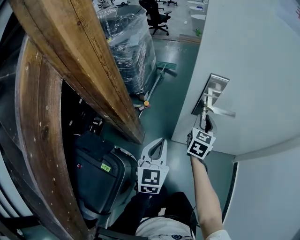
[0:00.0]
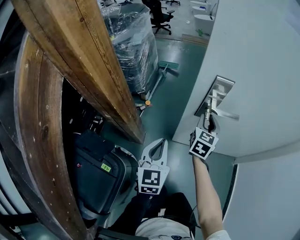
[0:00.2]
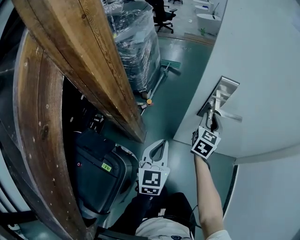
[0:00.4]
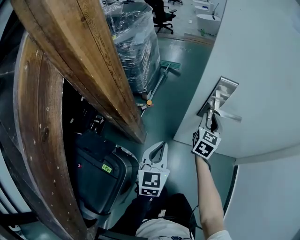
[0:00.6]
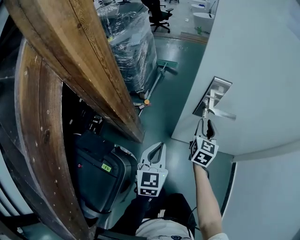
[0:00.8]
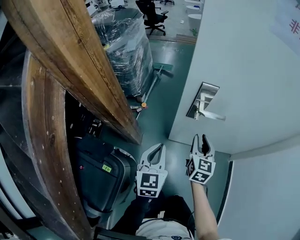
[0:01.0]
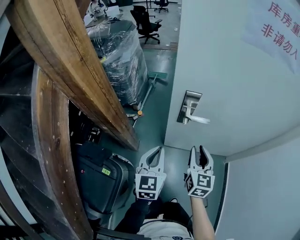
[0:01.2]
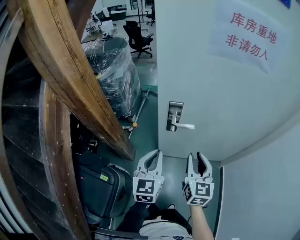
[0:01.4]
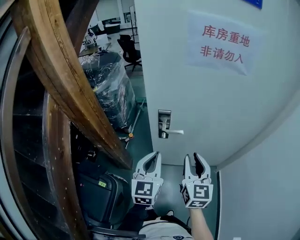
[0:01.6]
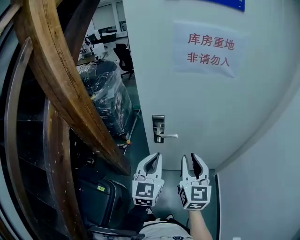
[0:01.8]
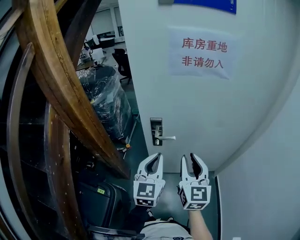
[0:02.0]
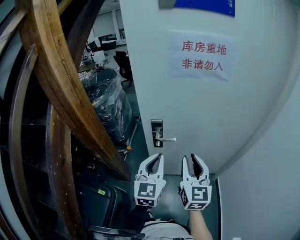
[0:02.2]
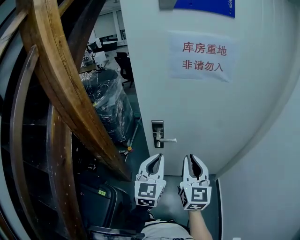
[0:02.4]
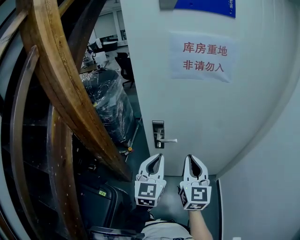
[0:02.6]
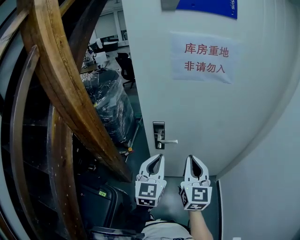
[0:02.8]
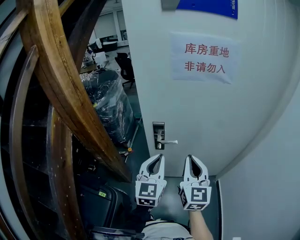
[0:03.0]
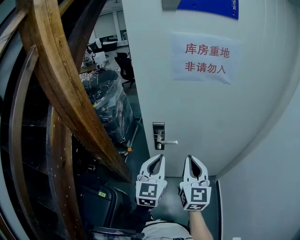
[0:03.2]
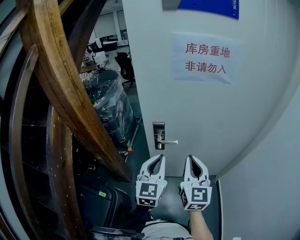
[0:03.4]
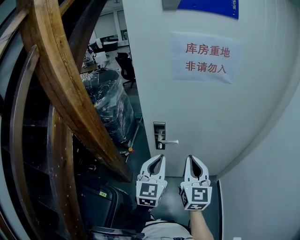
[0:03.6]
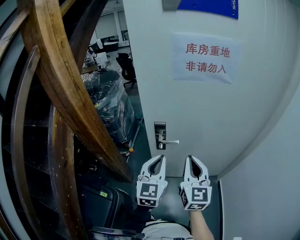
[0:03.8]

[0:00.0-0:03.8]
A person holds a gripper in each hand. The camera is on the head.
0:00.0 to 0:01.2: The left gripper is displaced upward by approximately 10 cm; the right gripper travels backward and upward by about 15 cm.
0:01.2 to 0:02.6: The two grippers go roughly 25 cm upward and to the right. The right gripper closes.
0:02.6 to 0:03.8: The two grippers keep their place.

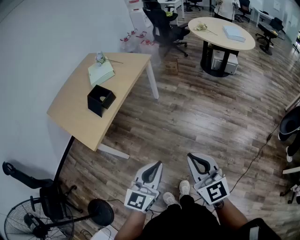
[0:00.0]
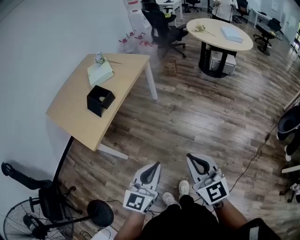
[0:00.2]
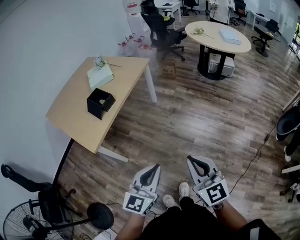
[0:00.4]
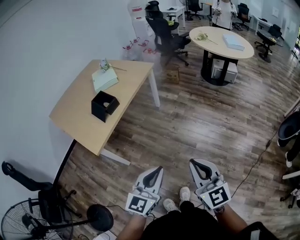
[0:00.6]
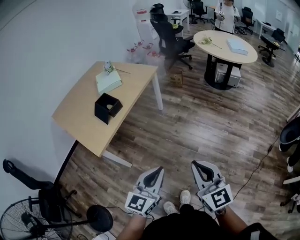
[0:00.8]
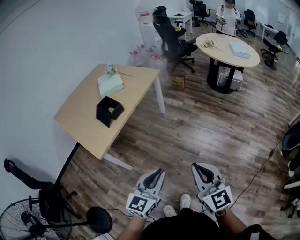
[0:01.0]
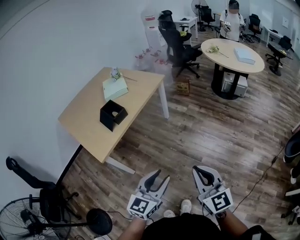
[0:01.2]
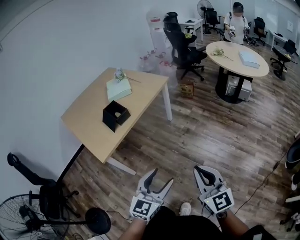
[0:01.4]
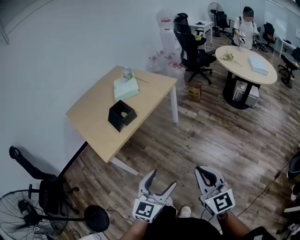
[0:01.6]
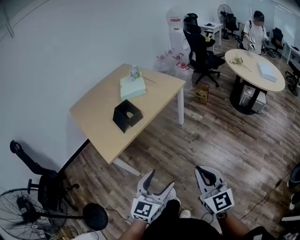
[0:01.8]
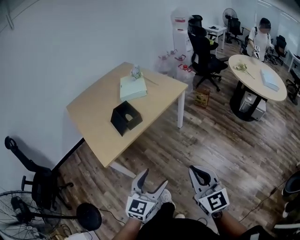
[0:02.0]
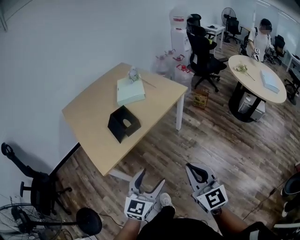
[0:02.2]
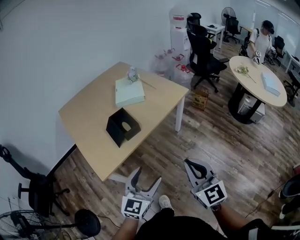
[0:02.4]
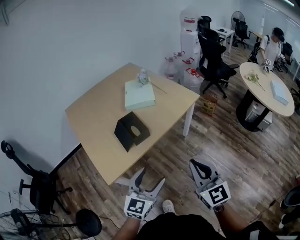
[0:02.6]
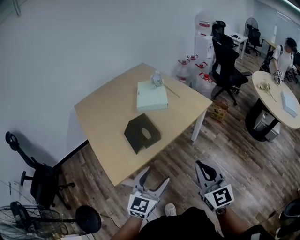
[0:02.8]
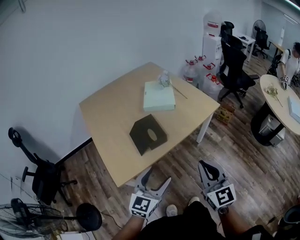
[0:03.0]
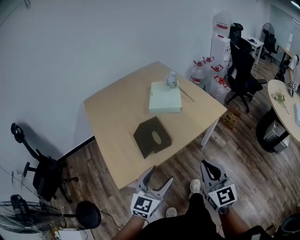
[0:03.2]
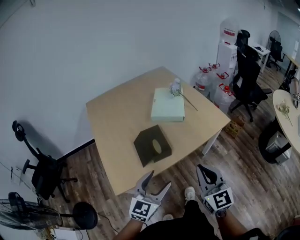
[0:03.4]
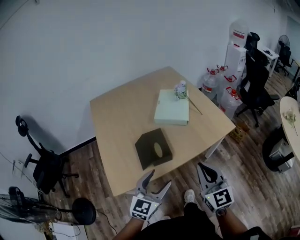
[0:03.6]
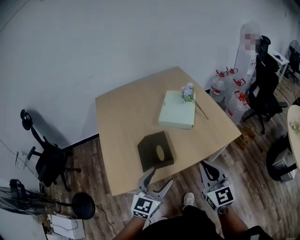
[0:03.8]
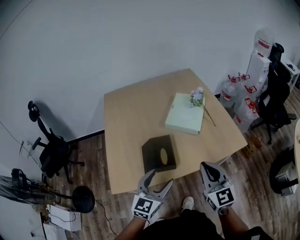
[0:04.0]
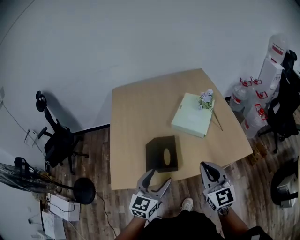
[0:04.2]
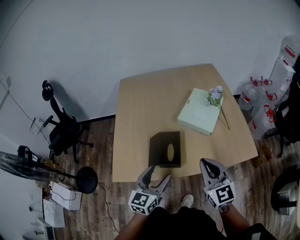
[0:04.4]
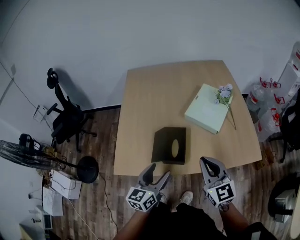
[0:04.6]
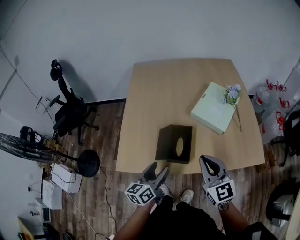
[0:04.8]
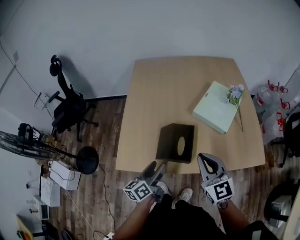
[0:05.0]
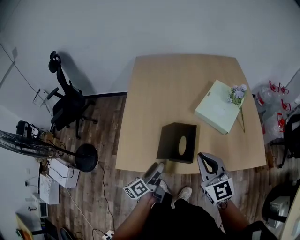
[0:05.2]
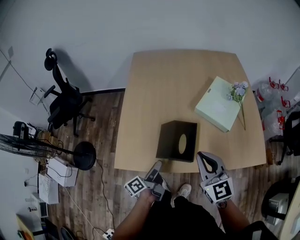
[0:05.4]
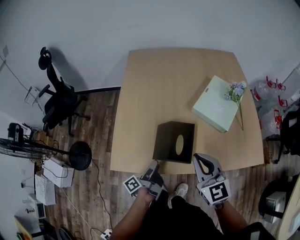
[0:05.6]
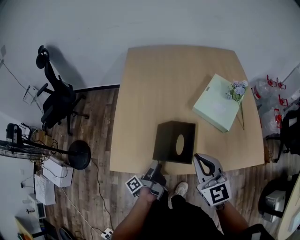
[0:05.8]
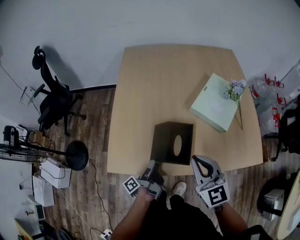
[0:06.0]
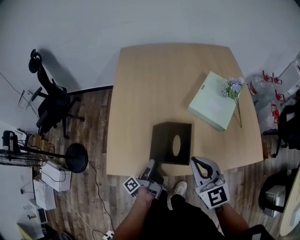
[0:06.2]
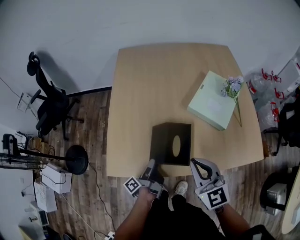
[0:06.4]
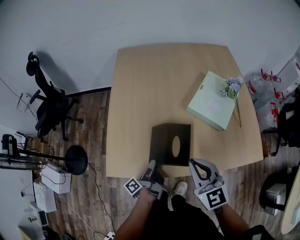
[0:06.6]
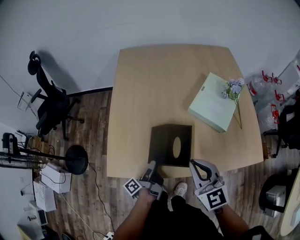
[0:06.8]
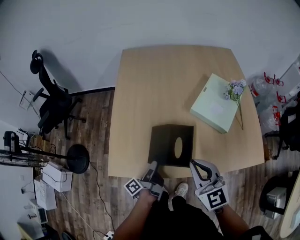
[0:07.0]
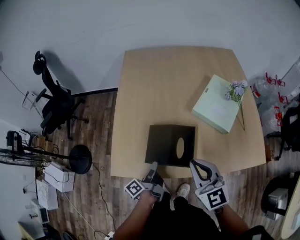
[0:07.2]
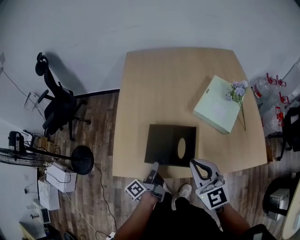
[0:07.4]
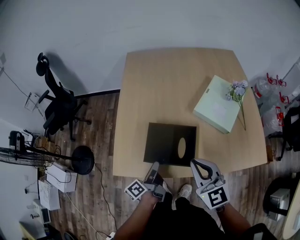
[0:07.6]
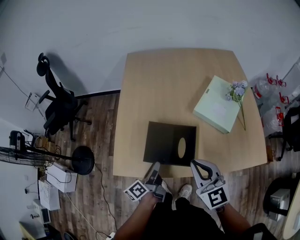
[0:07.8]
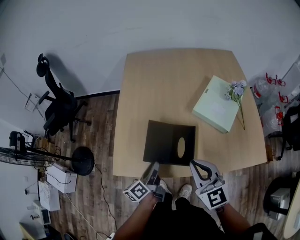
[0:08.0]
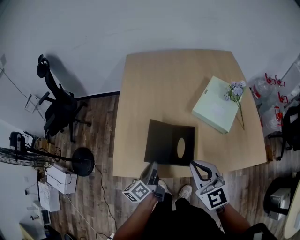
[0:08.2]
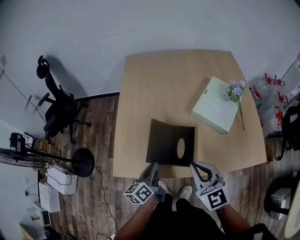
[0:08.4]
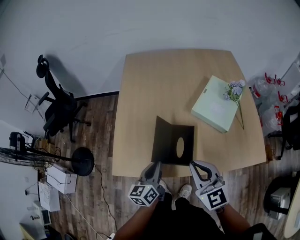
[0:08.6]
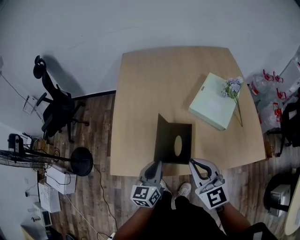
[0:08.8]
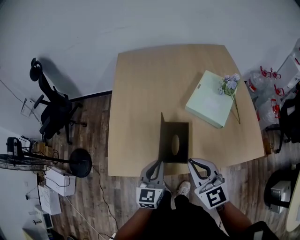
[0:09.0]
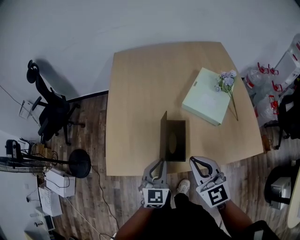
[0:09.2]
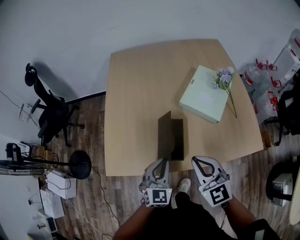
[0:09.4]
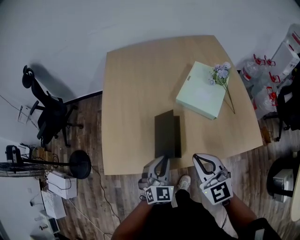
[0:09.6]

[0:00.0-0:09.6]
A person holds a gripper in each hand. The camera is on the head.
0:00.0 to 0:01.6: The right gripper is displaced forward by about 5 cm, while the left gripper changes place by roughly 5 cm, and opens up.
0:01.6 to 0:03.2: The left gripper travels forward and to the left by some 35 cm. Meanwhile the right gripper travels forward by approximately 35 cm.
0:03.2 to 0:04.8: The right gripper moves roughly 25 cm, and rotates some 40 degrees, while the left gripper moves some 15 cm, and rotates some 60 degrees.
0:04.8 to 0:06.4: The right gripper travels to the left by some 5 cm, while the left gripper moves downward and forward, roughly 15 cm, and rolls counterclockwise, seen from behind, by approximately 70 degrees.
0:06.4 to 0:08.0: The left gripper shifts approximately 5 cm upward, turns by roughly 40 degrees, and closes up.
0:08.0 to 0:09.6: The right gripper shifts about 5 cm to the right, while the left gripper is displaced to the right by approximately 10 cm, and twists some 90 degrees clockwise, seen from behind.

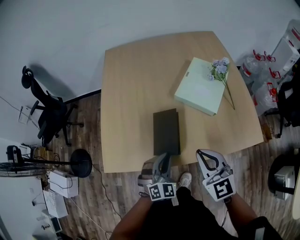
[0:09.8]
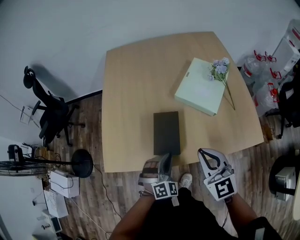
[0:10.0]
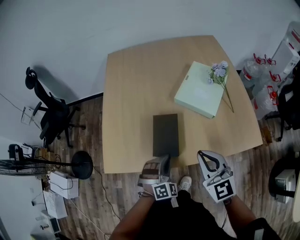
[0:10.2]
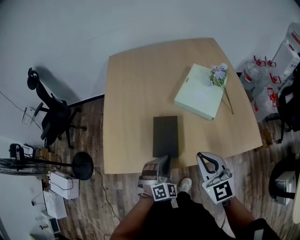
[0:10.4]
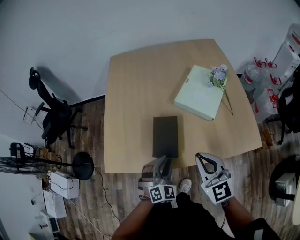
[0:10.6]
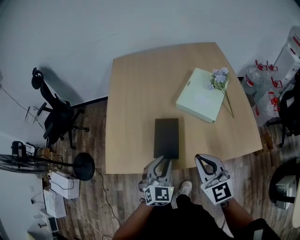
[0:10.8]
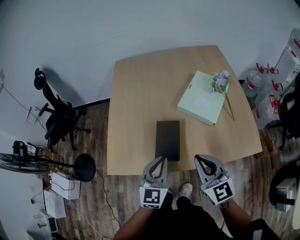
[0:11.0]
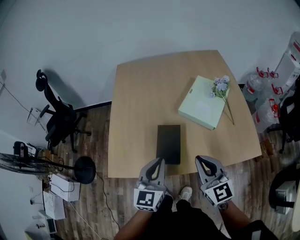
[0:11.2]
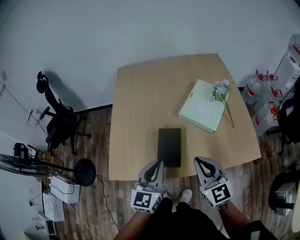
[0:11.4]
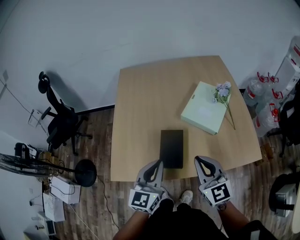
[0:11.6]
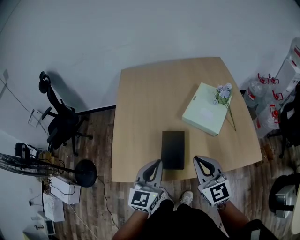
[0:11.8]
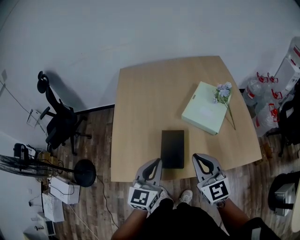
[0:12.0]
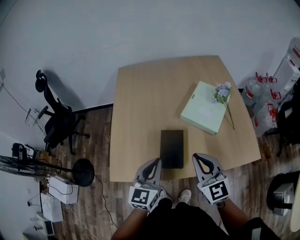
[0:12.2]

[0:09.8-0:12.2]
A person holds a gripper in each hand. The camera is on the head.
0:09.8 to 0:11.0: The left gripper travels upward by some 10 cm, and changes its angle by about 40 degrees.
0:11.0 to 0:12.2: The left gripper moves about 5 cm. The right gripper changes place by approximately 5 cm.

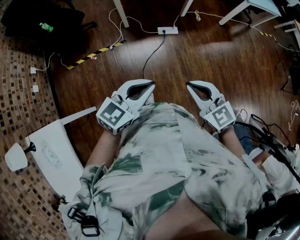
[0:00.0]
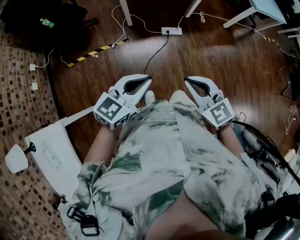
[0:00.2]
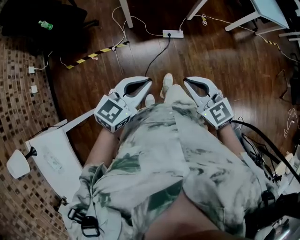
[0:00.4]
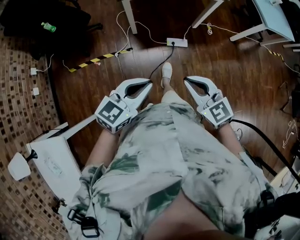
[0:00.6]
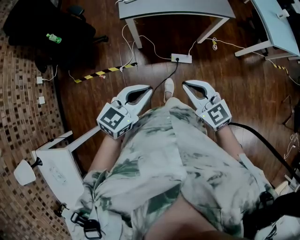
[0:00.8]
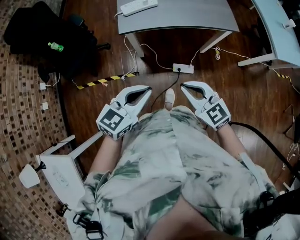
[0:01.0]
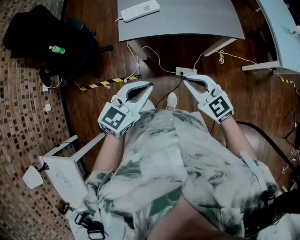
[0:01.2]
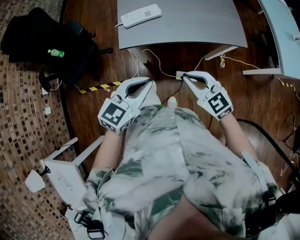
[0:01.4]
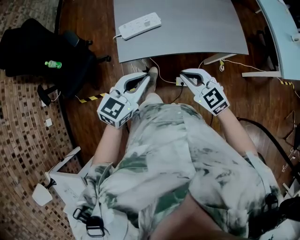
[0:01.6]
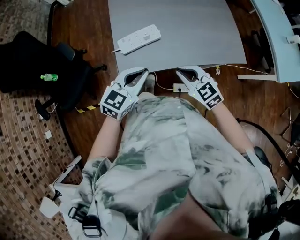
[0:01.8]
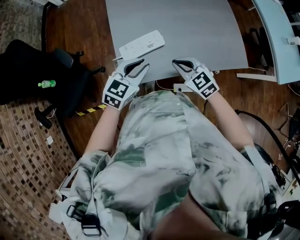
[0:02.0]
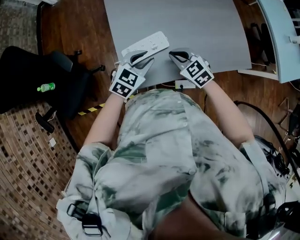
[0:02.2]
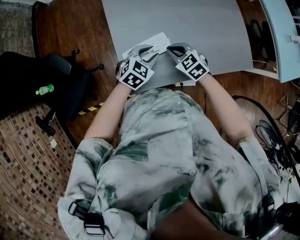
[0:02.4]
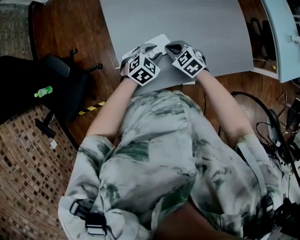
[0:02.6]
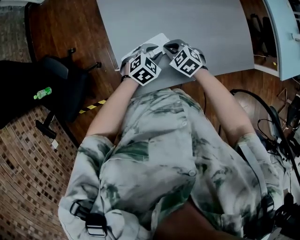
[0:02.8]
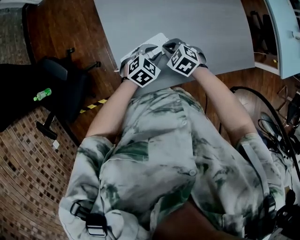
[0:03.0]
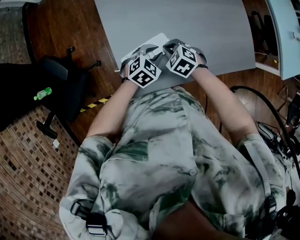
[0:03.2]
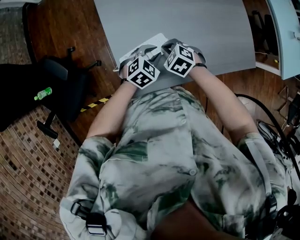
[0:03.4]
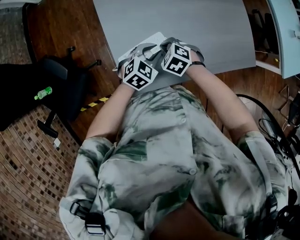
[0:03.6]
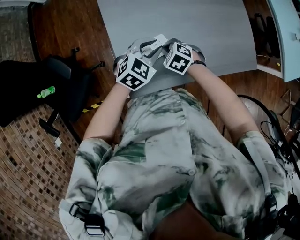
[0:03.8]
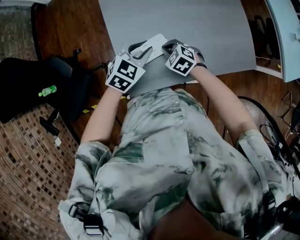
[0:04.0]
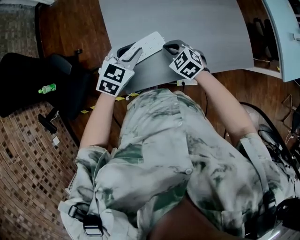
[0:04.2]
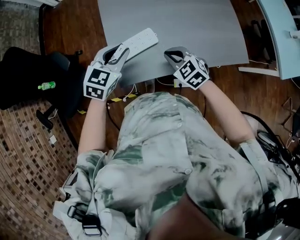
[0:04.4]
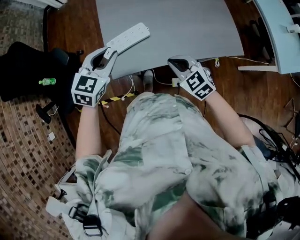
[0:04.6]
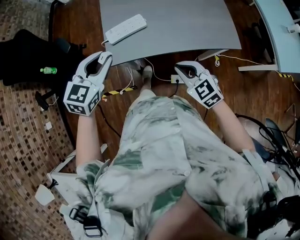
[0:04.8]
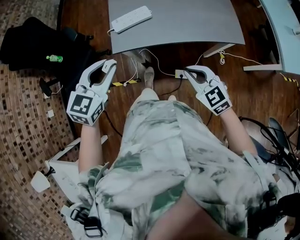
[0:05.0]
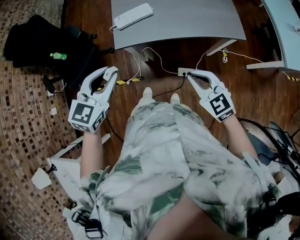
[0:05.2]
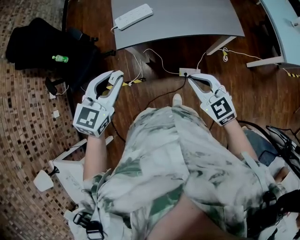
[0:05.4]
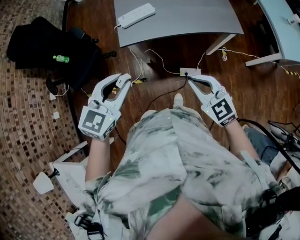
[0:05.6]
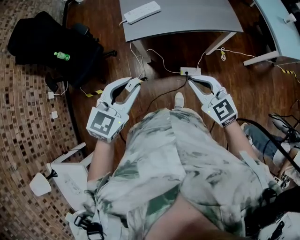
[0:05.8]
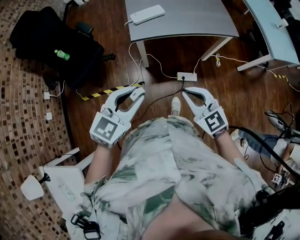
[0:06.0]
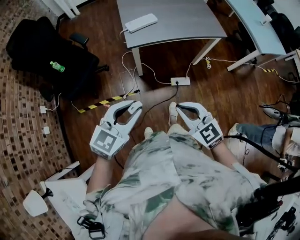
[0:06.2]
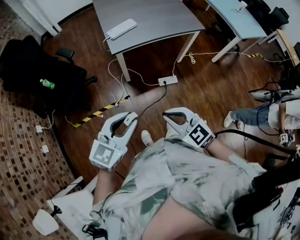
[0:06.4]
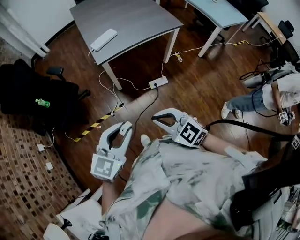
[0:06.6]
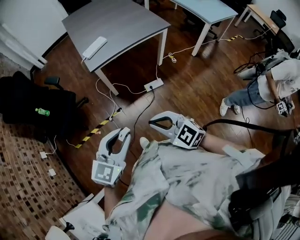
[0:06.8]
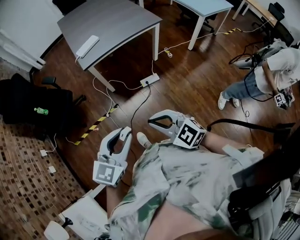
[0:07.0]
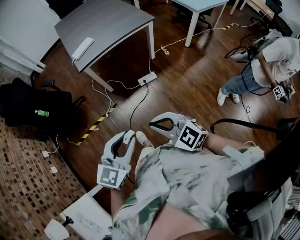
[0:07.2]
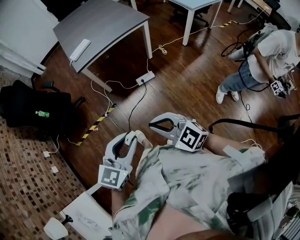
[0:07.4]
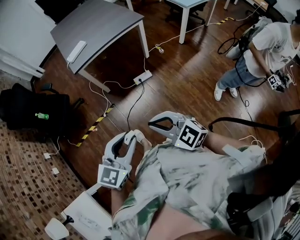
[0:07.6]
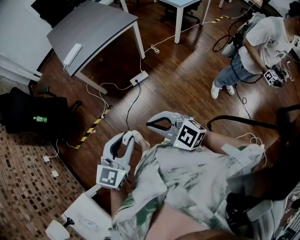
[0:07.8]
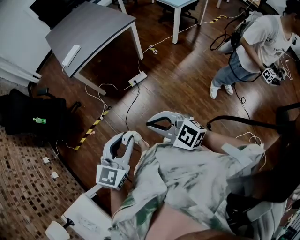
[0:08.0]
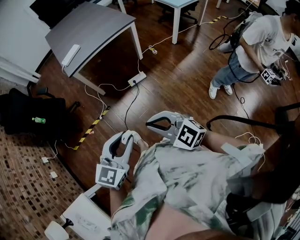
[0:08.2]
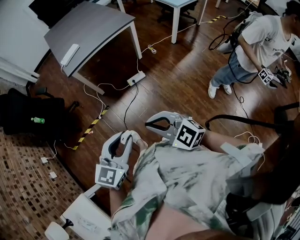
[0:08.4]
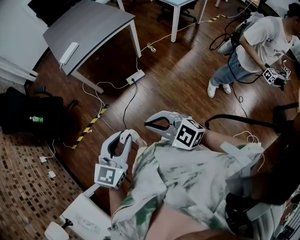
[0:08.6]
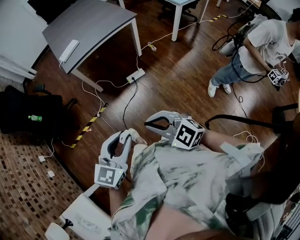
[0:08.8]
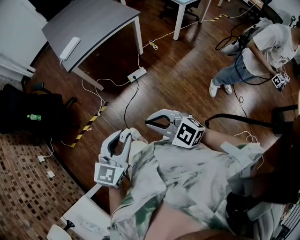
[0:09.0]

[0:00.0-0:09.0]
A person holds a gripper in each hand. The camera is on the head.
0:00.0 to 0:01.6: The two grippers travel together, forward, approximately 60 cm.
0:01.6 to 0:03.0: Both grippers move forward and downward, approximately 35 cm. The left gripper changes its angle by some 30 degrees, and opens up. Meanwhile the right gripper tilts its fingers some 30 degrees downward.
0:03.0 to 0:04.4: The right gripper is displaced upward and backward by about 10 cm, while the left gripper travels upward and to the left by roughly 20 cm, and rotates approximately 20 degrees.
0:04.4 to 0:06.0: The pair of grippers is taken backward, some 50 cm. The right gripper turns by approximately 20 degrees.
0:06.0 to 0:07.6: The right gripper shifts roughly 35 cm backward. Meanwhile the left gripper shifts some 35 cm backward and to the right.
0:07.6 to 0:09.0: There are only small adjustments of the grippers.
